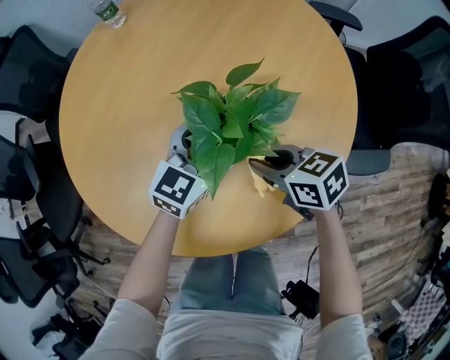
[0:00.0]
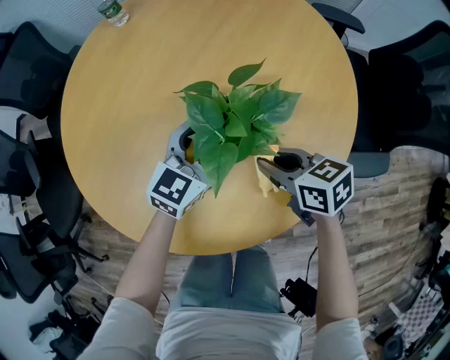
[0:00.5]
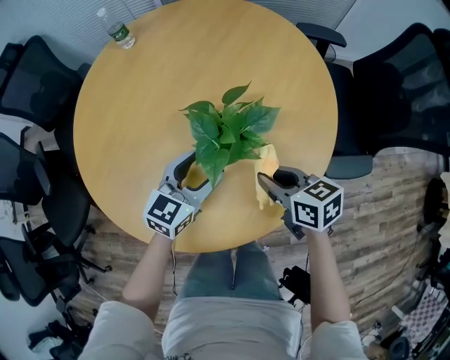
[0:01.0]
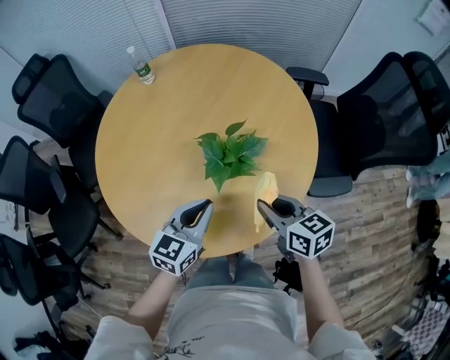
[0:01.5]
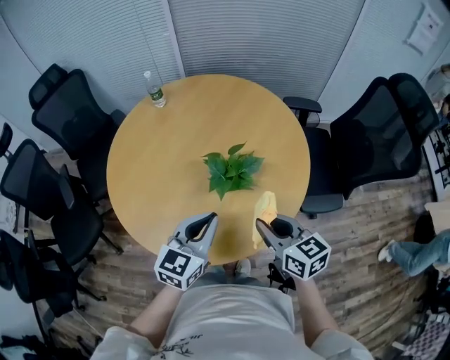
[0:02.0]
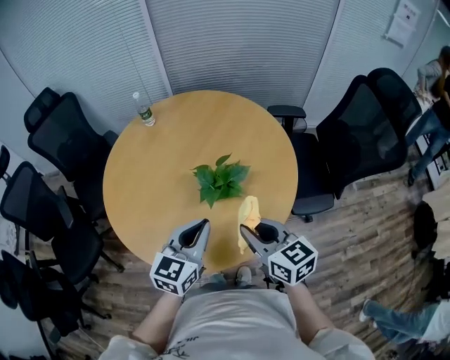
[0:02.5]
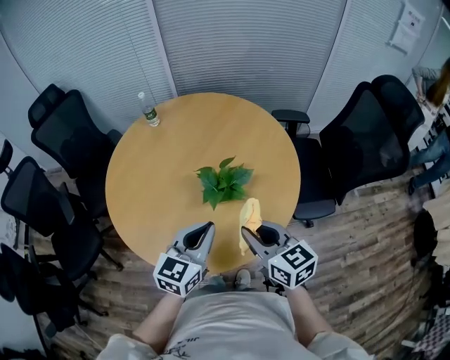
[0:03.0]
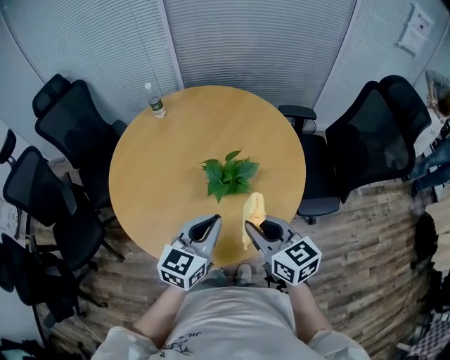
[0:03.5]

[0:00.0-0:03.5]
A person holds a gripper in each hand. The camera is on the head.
0:00.0 to 0:02.0: The grippers both shift upward and backward by about 25 cm. The right gripper swivels approximately 30 degrees. The left gripper closes.
0:02.0 to 0:03.5: The grippers move only a little.

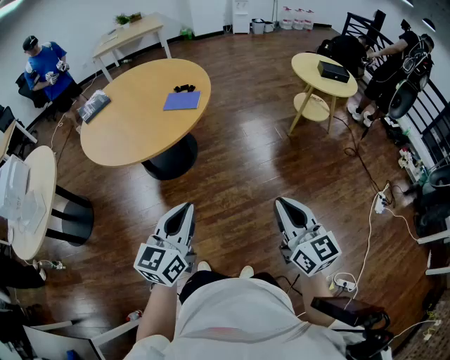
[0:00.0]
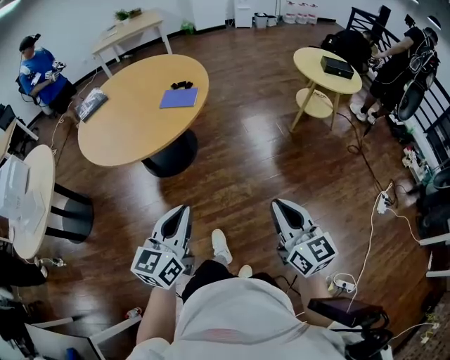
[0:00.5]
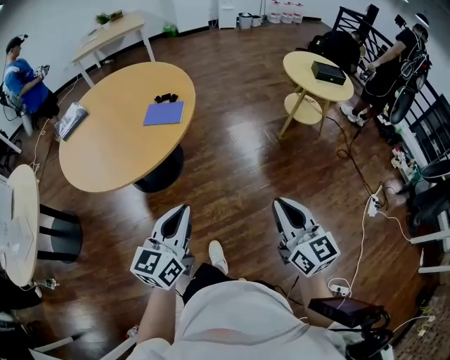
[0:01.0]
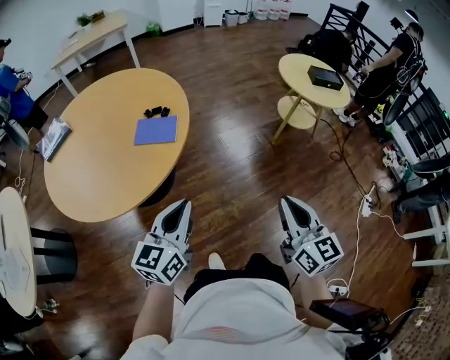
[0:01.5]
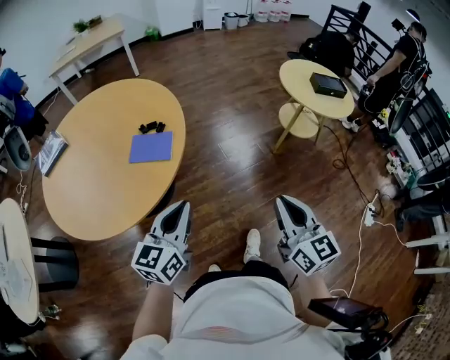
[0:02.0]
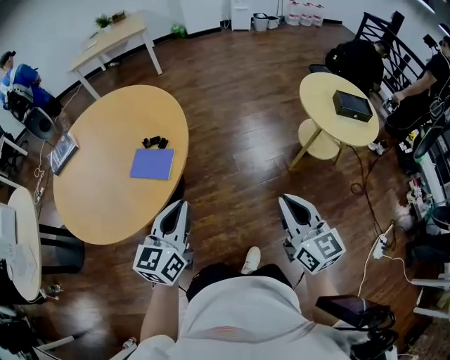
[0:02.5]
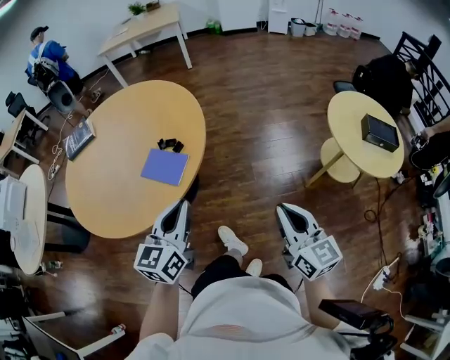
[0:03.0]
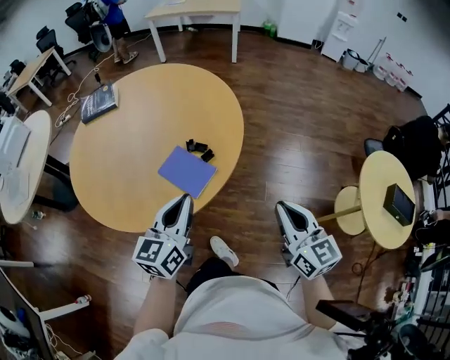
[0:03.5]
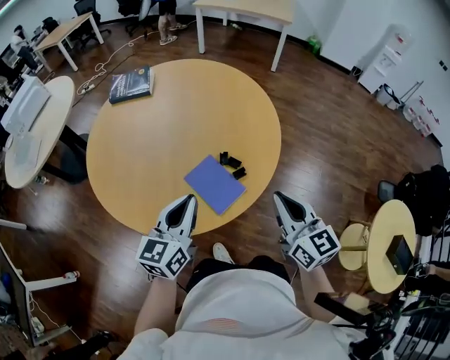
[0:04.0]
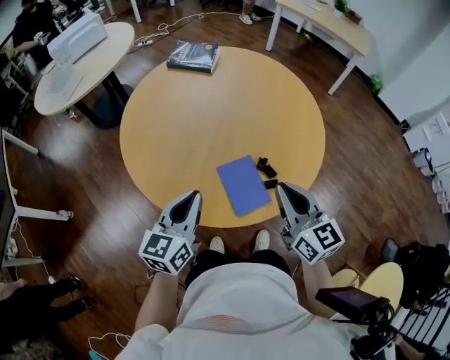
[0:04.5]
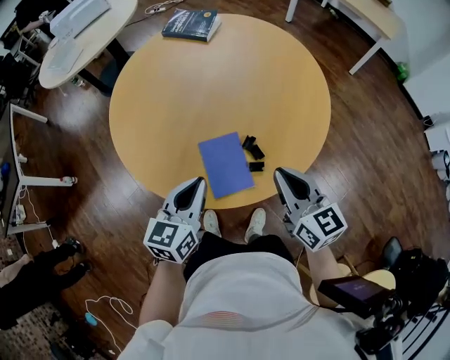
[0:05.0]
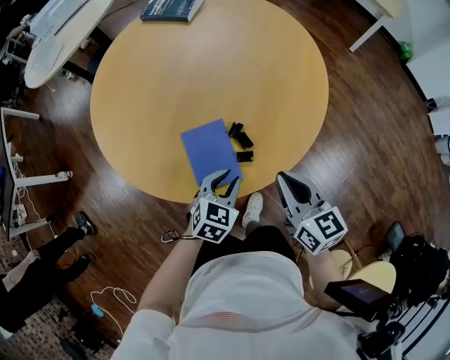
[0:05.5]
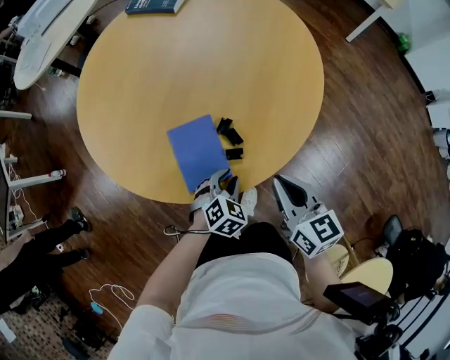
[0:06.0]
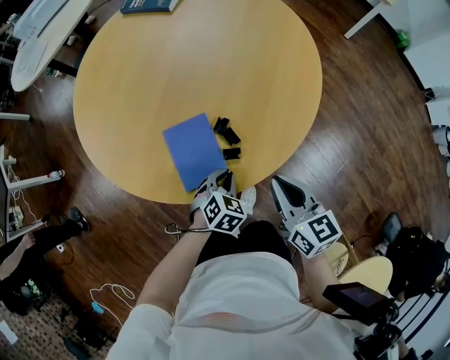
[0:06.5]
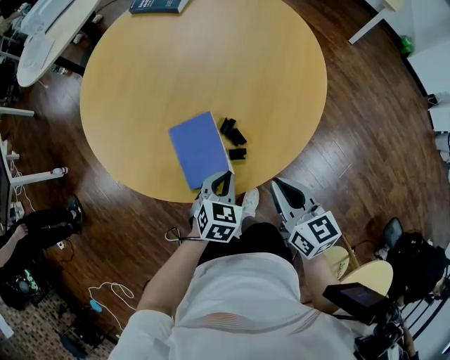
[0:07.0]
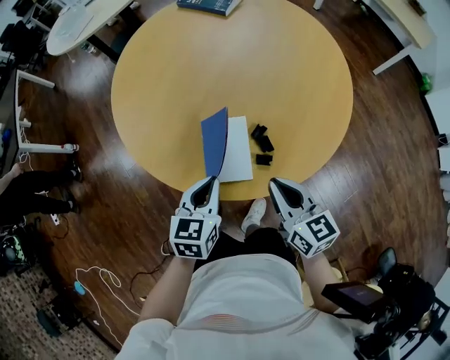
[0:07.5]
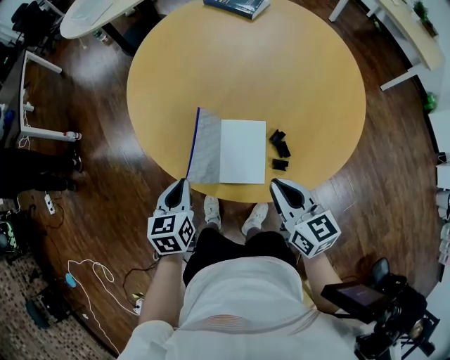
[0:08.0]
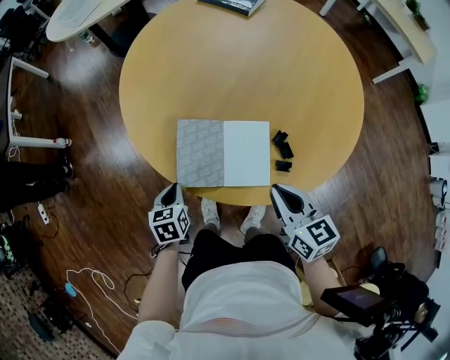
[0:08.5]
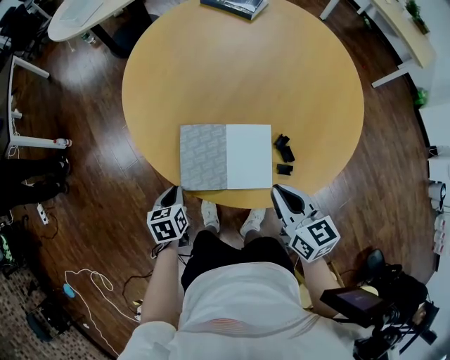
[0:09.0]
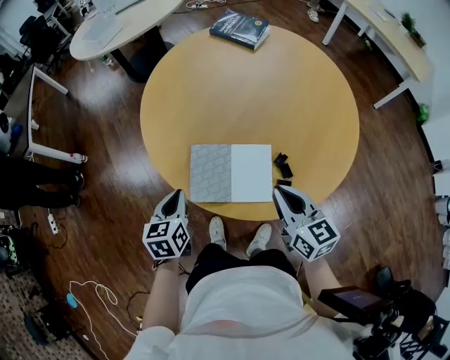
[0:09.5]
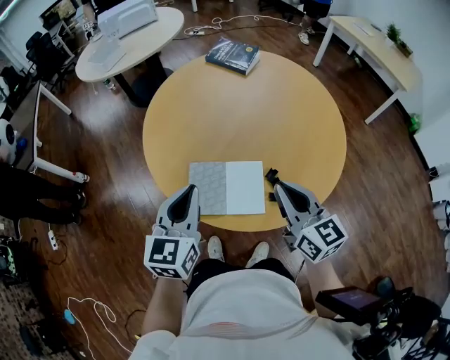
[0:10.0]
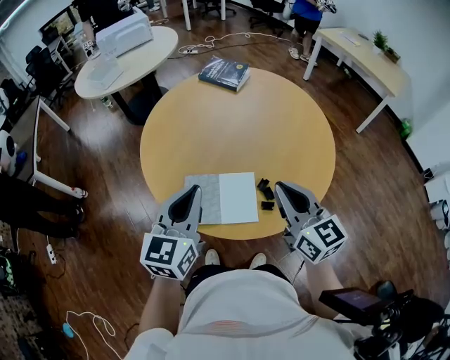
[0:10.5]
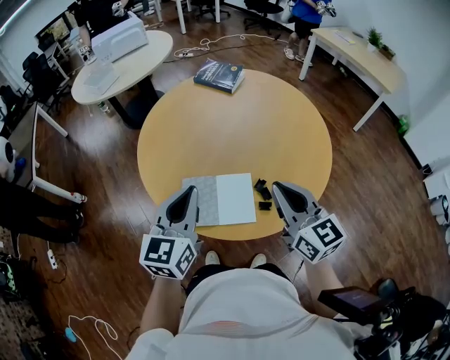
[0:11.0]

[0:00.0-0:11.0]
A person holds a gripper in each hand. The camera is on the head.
0:00.0 to 0:02.0: The two grippers go approximately 35 cm forward.
0:02.0 to 0:03.5: The left gripper ends up roughly 25 cm from where it was, and swivels some 40 degrees. The right gripper moves approximately 35 cm, and turns by roughly 40 degrees.
0:03.5 to 0:05.5: The right gripper changes place by some 30 cm, and swivels about 40 degrees, while the left gripper moves downward, roughly 20 cm, and tilts its fingers about 40 degrees downward.
0:05.5 to 0:07.5: The left gripper heads to the left and upward, covering approximately 10 cm, and turns by about 30 degrees, while the right gripper shifts about 5 cm to the left.
0:07.5 to 0:09.0: The left gripper moves to the left and downward, roughly 25 cm, and changes its angle by some 30 degrees; the right gripper moves to the left, about 10 cm.
0:09.0 to 0:11.0: The right gripper shifts approximately 20 cm upward, and swivels some 20 degrees, while the left gripper travels upward by some 35 cm, and angles its fingers upward, by approximately 40 degrees.

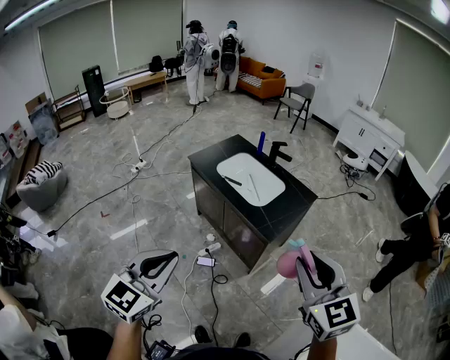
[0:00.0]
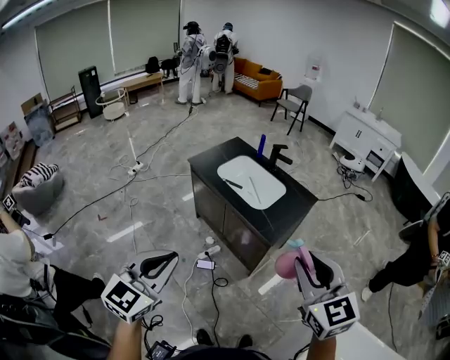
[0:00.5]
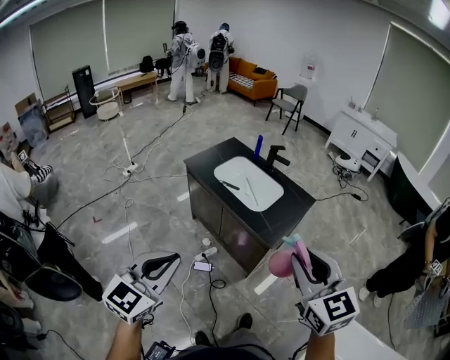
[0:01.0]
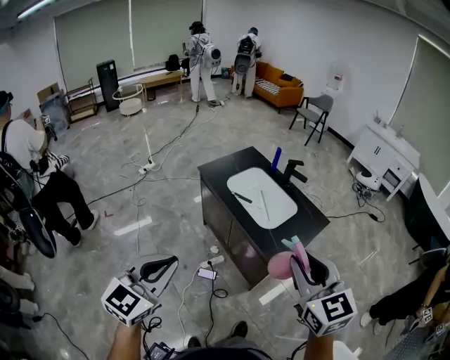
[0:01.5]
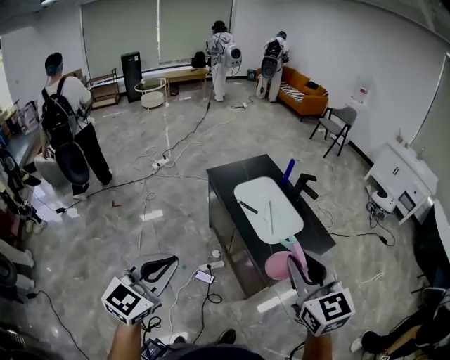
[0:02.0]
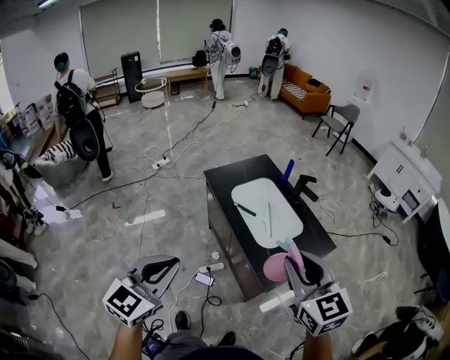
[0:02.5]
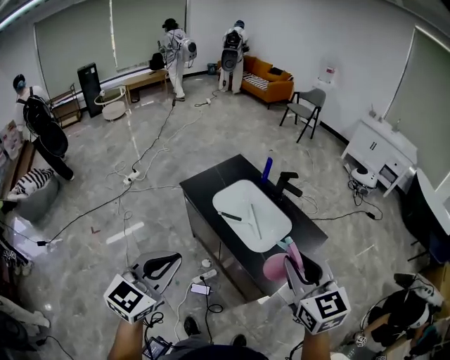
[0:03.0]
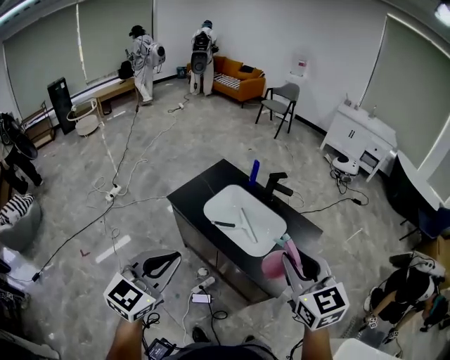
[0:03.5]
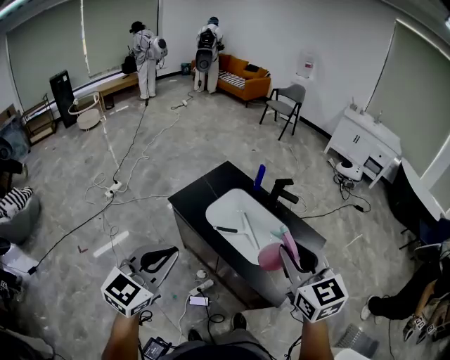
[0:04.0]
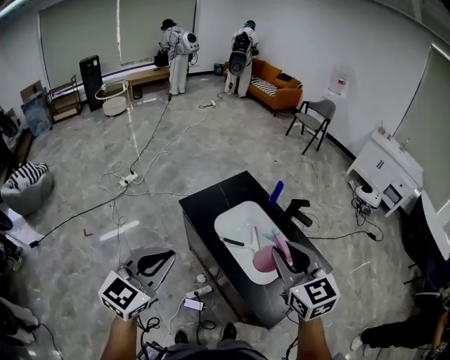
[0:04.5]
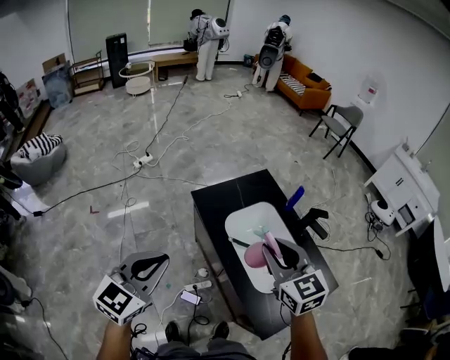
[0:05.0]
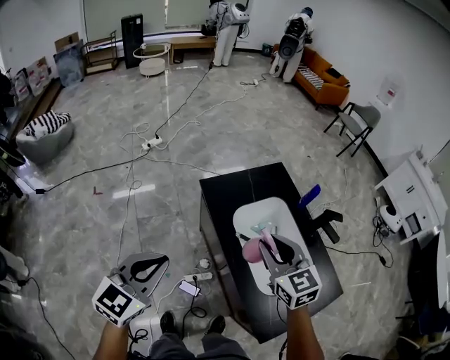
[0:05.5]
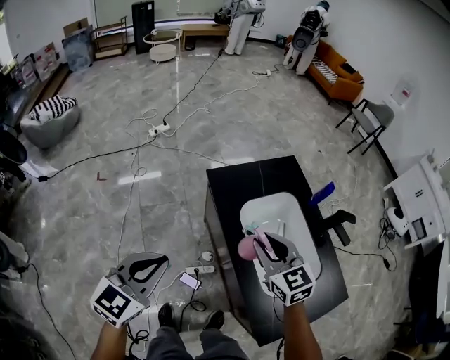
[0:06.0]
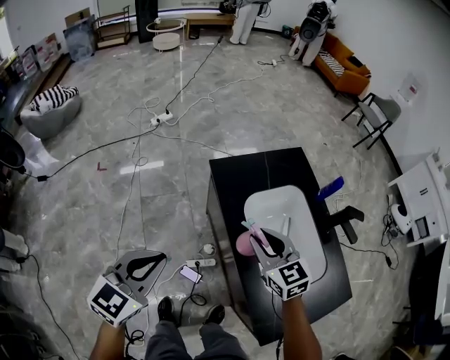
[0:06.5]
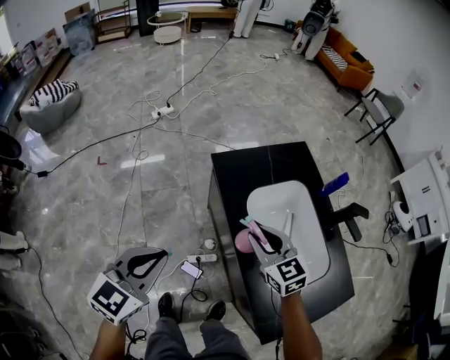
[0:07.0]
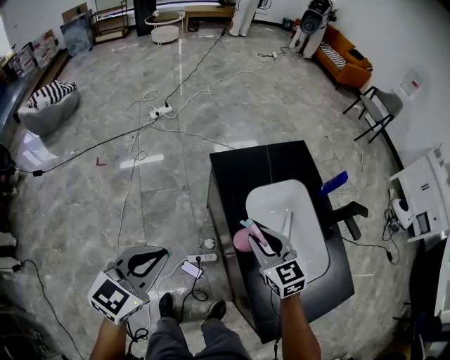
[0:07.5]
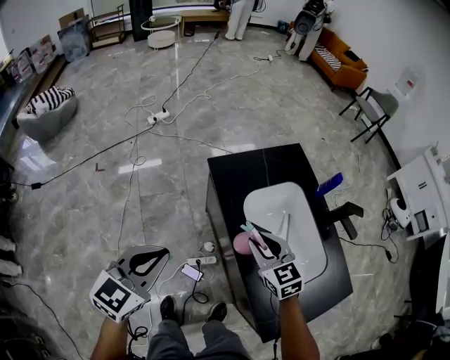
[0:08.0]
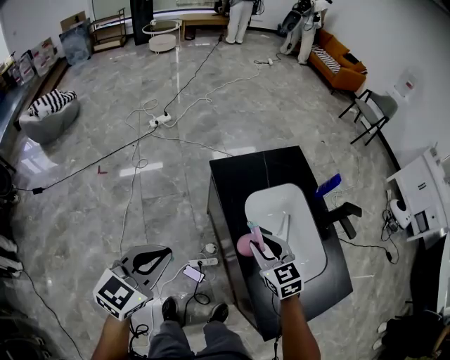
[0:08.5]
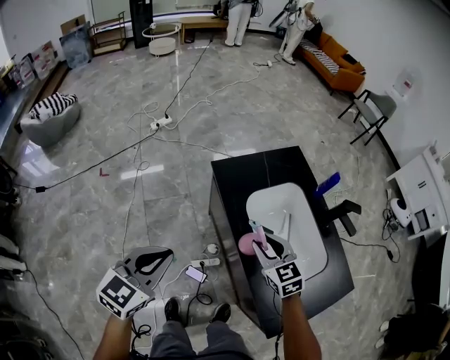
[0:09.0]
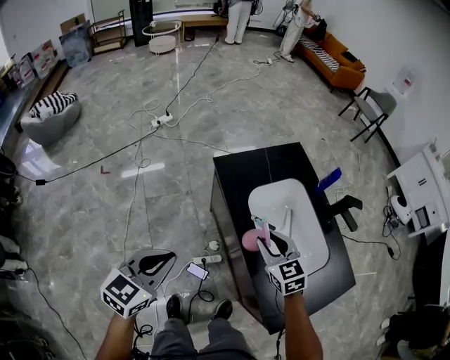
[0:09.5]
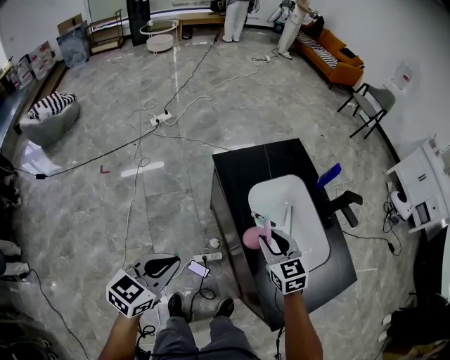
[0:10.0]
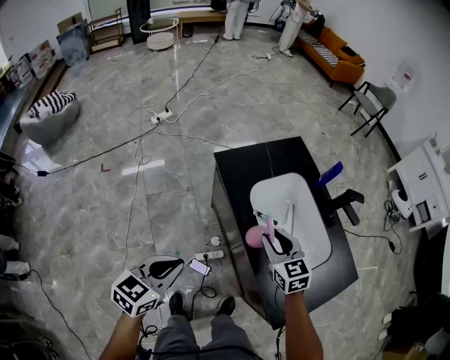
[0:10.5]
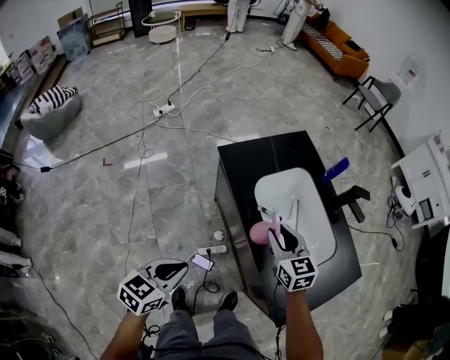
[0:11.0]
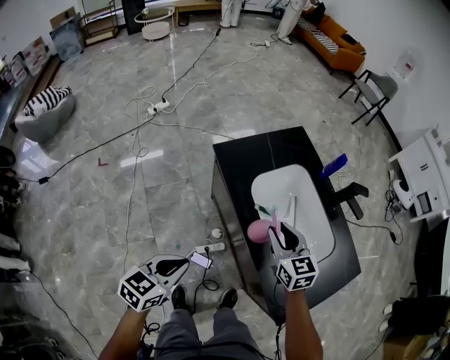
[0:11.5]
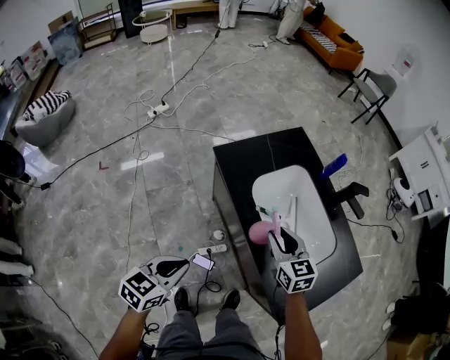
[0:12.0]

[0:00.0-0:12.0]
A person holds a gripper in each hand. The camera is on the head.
0:00.0 to 0:02.0: The grippers both shift forward by about 20 cm.
0:02.0 to 0:04.0: The right gripper travels forward and to the left by about 25 cm. The left gripper heads forward, covering roughly 30 cm, and swivels about 20 degrees.
0:04.0 to 0:06.0: The left gripper moves downward, approximately 15 cm, and turns by some 30 degrees, while the right gripper moves some 35 cm, and swivels approximately 40 degrees.
0:06.0 to 0:08.0: The right gripper is displaced downward by some 10 cm.
0:08.0 to 0:10.0: The left gripper travels backward by approximately 5 cm.
0:10.0 to 0:12.0: The left gripper moves downward, approximately 5 cm.
